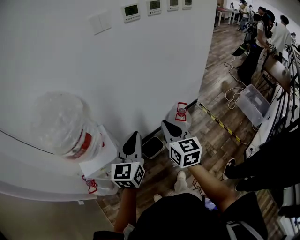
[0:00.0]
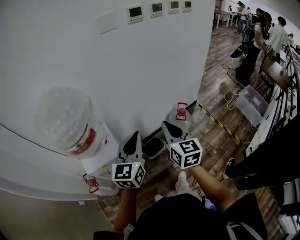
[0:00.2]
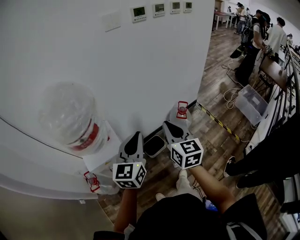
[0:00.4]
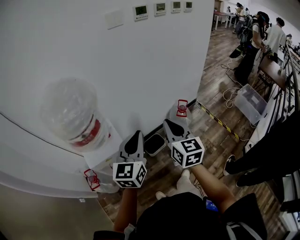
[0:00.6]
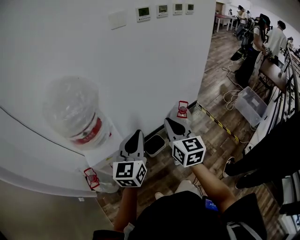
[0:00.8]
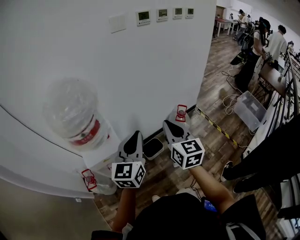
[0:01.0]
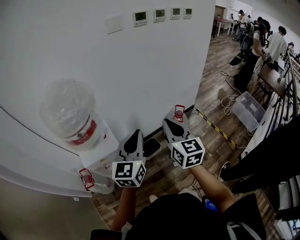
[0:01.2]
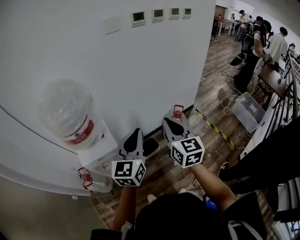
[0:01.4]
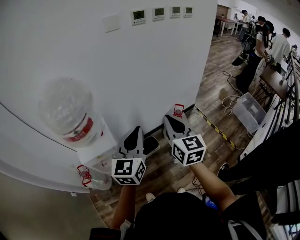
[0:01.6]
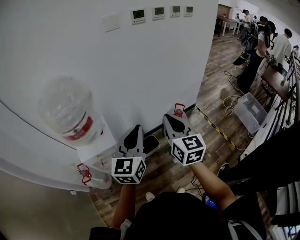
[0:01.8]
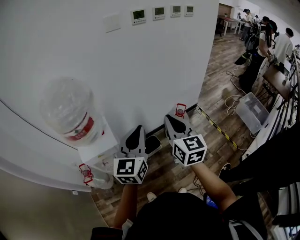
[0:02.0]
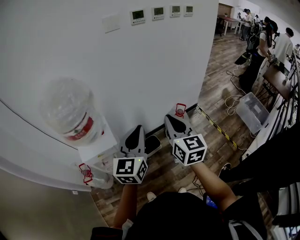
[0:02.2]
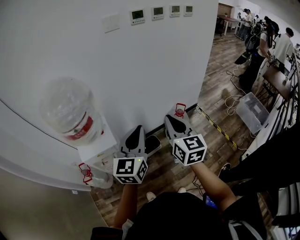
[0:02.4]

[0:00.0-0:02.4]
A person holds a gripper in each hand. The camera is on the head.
0:00.0 to 0:01.2: The grippers both shift backward by some 10 cm.
0:01.2 to 0:02.4: There are only small adjustments of the grippers.

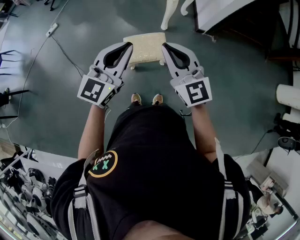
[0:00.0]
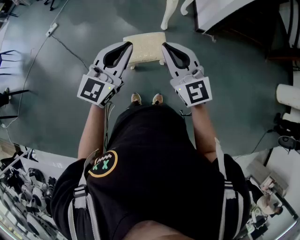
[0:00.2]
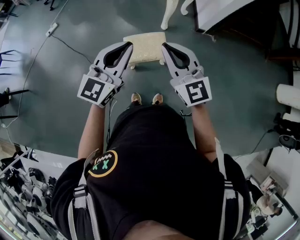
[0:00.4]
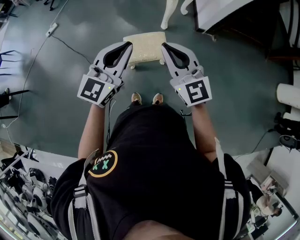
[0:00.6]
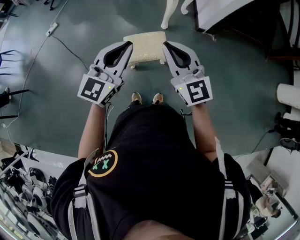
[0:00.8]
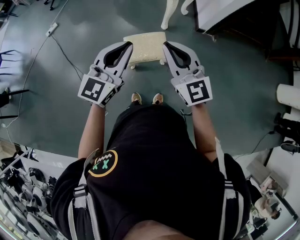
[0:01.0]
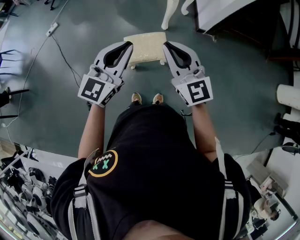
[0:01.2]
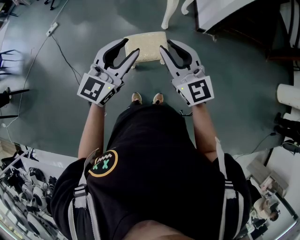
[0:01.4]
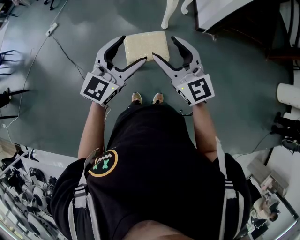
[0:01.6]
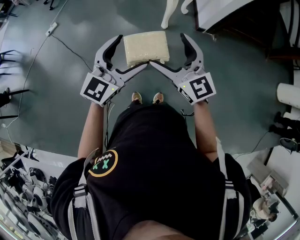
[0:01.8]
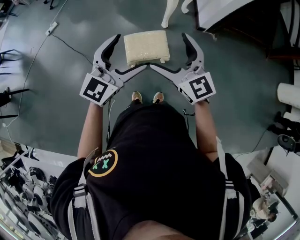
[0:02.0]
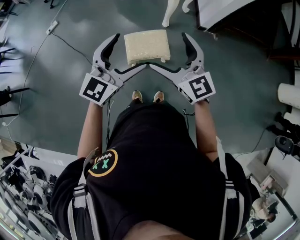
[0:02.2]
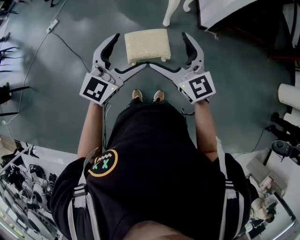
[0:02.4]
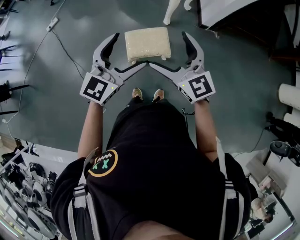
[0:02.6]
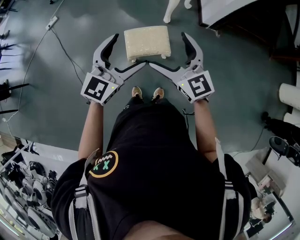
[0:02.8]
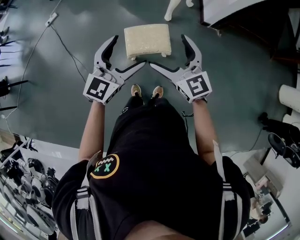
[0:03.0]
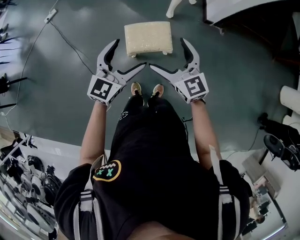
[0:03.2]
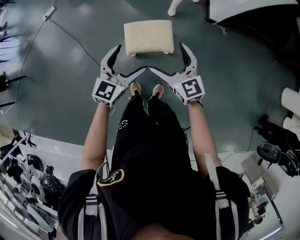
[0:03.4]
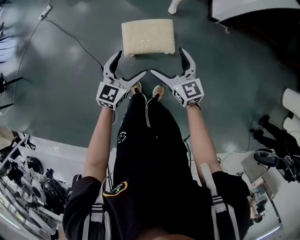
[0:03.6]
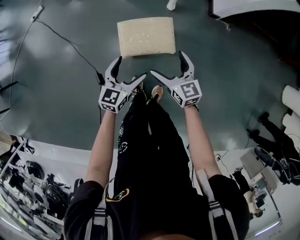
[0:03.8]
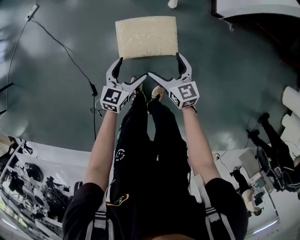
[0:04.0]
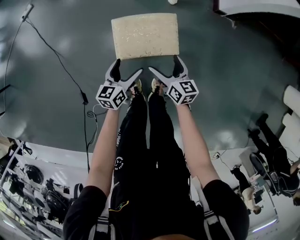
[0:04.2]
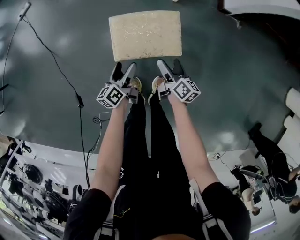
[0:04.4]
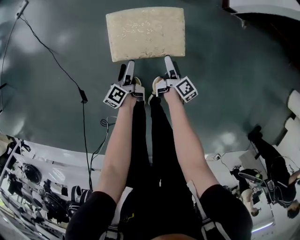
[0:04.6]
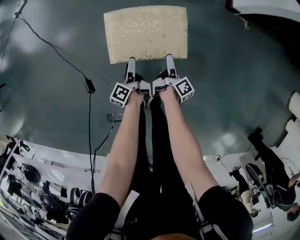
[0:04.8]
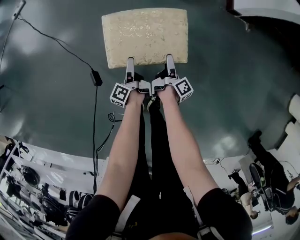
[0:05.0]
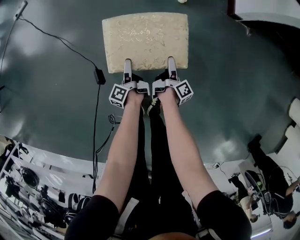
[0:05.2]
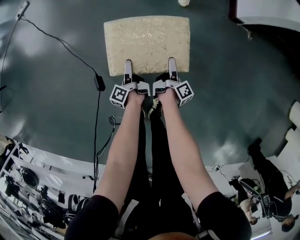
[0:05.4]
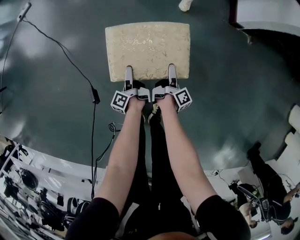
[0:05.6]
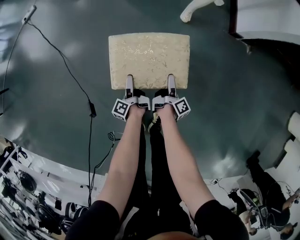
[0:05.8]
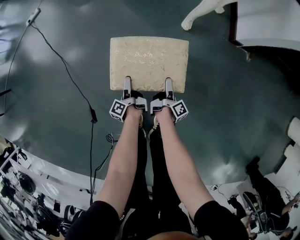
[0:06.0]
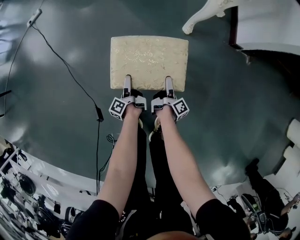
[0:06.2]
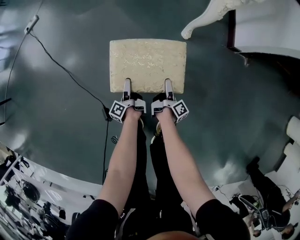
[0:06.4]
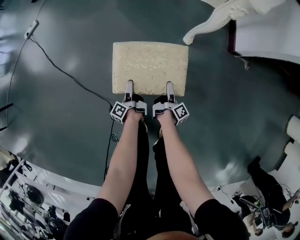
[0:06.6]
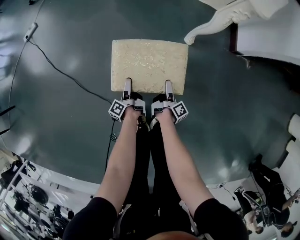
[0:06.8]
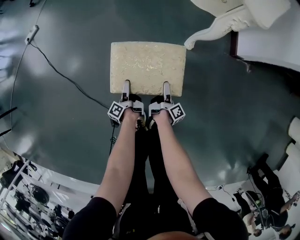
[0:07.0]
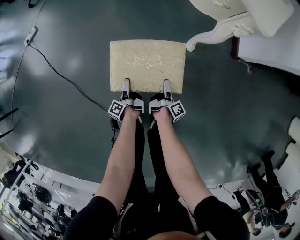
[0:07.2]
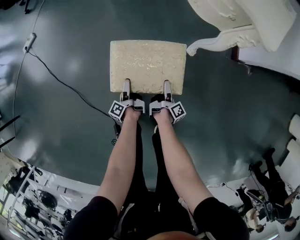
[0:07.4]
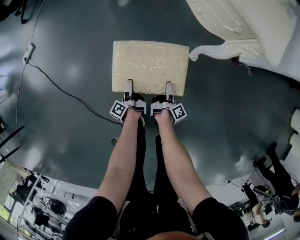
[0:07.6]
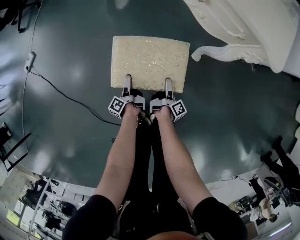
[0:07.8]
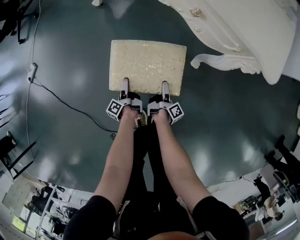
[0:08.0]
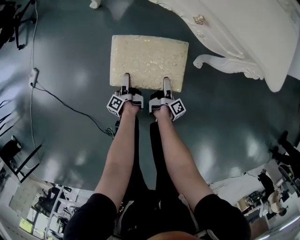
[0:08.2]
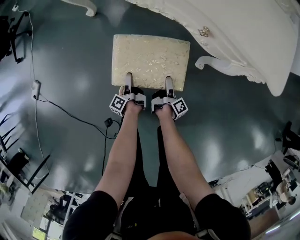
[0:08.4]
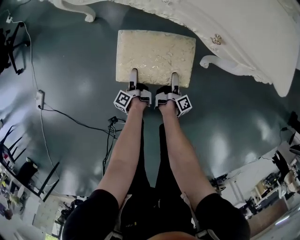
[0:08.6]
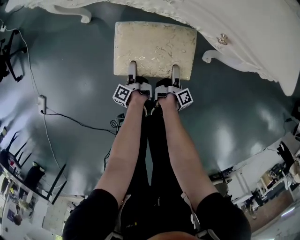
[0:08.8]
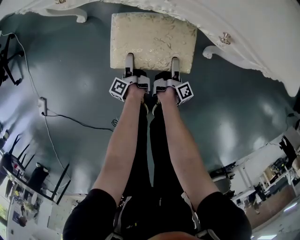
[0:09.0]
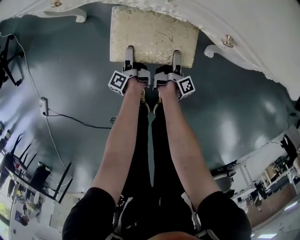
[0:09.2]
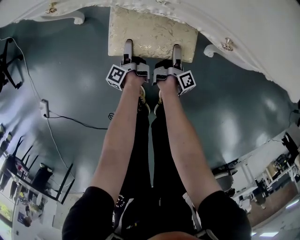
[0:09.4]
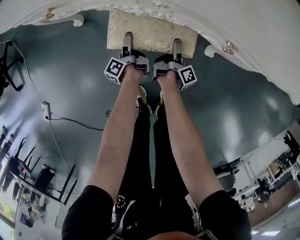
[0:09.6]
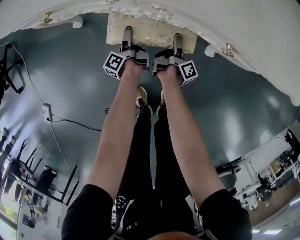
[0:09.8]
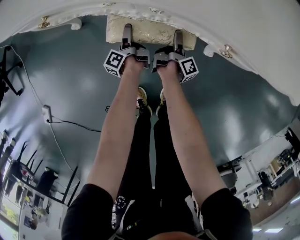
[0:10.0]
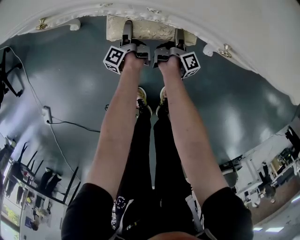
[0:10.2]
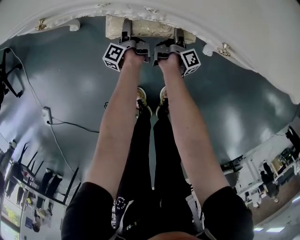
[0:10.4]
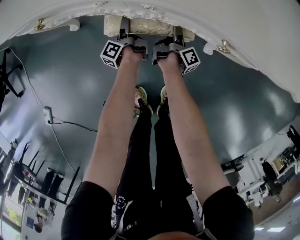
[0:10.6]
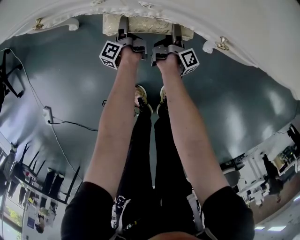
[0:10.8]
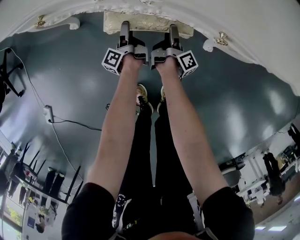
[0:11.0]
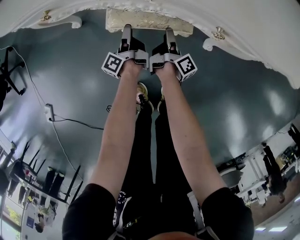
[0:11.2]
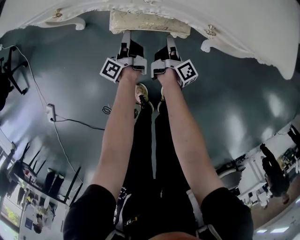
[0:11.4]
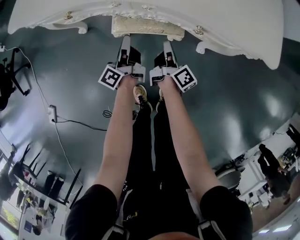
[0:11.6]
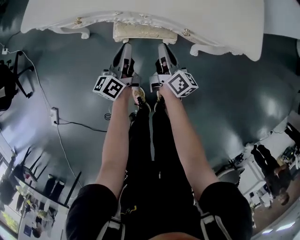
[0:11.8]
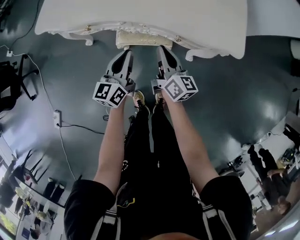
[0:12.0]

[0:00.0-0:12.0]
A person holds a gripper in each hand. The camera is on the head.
0:00.0 to 0:01.6: The right gripper opens up; the left gripper opens its fingers.
0:01.6 to 0:03.0: Both grippers move downward, about 5 cm. The right gripper opens.
0:03.0 to 0:04.4: Both grippers travel together downward, roughly 50 cm. The left gripper rotates around the line of its fingers by roughly 70 degrees, counterclockwise from behind. Meanwhile the right gripper rotates around the line of its fingers by approximately 60 degrees, clockwise from behind.
0:04.4 to 0:06.0: The right gripper goes approximately 20 cm downward, and twists approximately 40 degrees clockwise, seen from behind, while the left gripper moves downward and forward, roughly 20 cm, and changes its angle by roughly 50 degrees.
0:06.0 to 0:07.6: The left gripper swings forward and backward, approximately 15 cm each way, with 3 reversals. The right gripper goes forward and backward, roughly 15 cm each way, reversing 3 times.
0:07.6 to 0:09.0: Both grippers move forward, about 25 cm.
0:09.0 to 0:10.4: Both grippers travel together forward, approximately 15 cm.
0:10.4 to 0:12.0: Both grippers move upward, roughly 40 cm. The left gripper rolls clockwise, seen from behind, by approximately 60 degrees, and closes up. Meanwhile the right gripper rolls counterclockwise, seen from behind, by roughly 60 degrees, and closes.

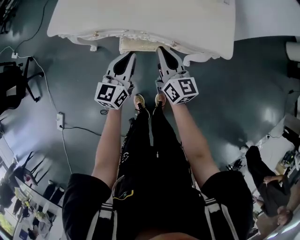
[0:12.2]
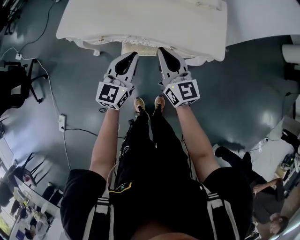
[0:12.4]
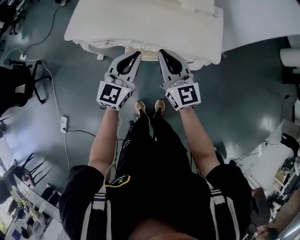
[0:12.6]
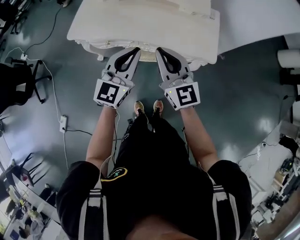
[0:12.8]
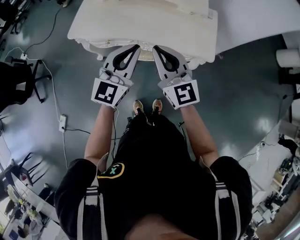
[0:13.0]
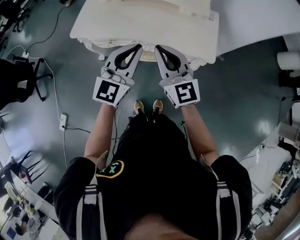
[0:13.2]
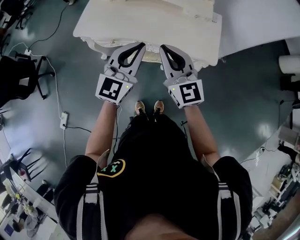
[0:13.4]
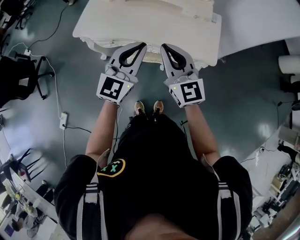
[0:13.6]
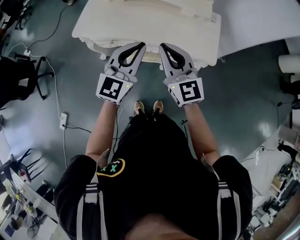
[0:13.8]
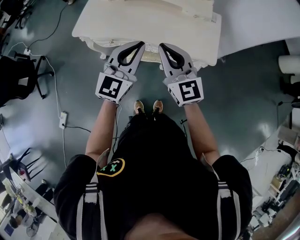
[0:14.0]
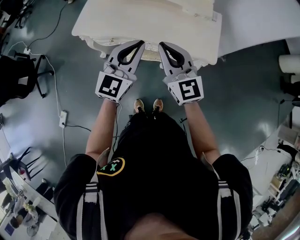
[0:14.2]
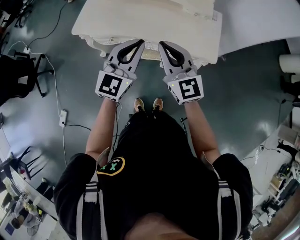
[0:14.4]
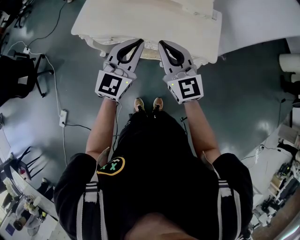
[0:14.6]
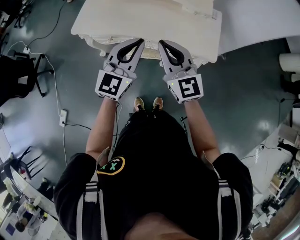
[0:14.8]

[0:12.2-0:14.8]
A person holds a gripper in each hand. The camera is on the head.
0:12.2 to 0:13.4: Both grippers move upward, approximately 25 cm. The left gripper turns by about 30 degrees, while the right gripper turns by some 30 degrees.
0:13.4 to 0:14.8: The two grippers keep their place.

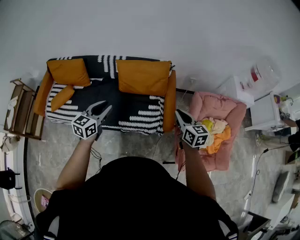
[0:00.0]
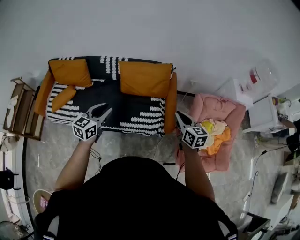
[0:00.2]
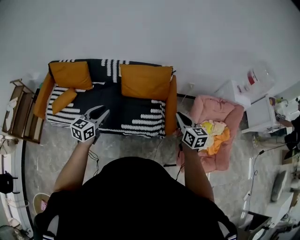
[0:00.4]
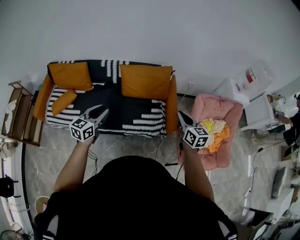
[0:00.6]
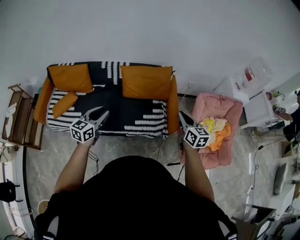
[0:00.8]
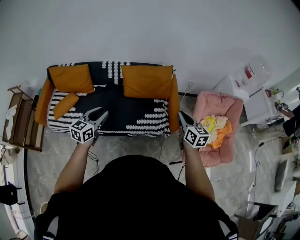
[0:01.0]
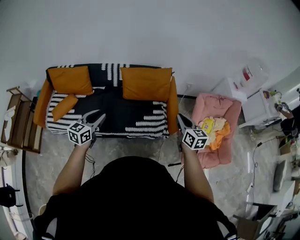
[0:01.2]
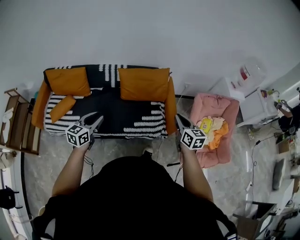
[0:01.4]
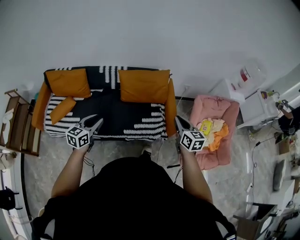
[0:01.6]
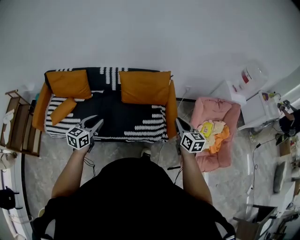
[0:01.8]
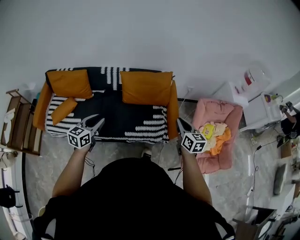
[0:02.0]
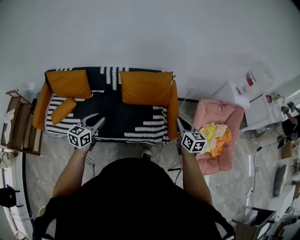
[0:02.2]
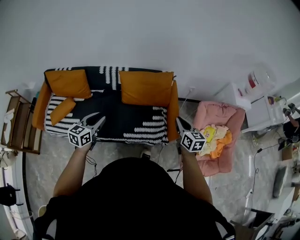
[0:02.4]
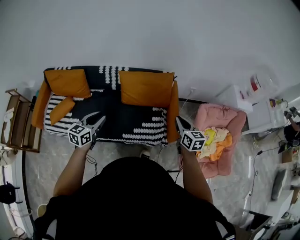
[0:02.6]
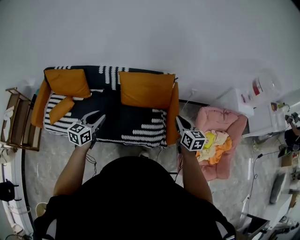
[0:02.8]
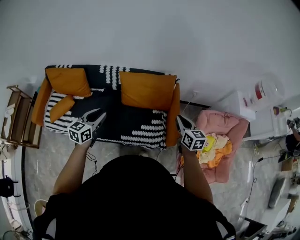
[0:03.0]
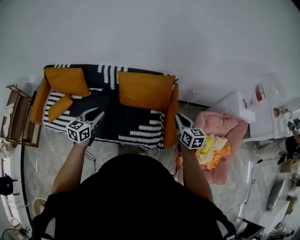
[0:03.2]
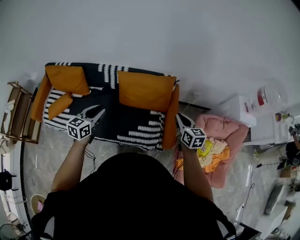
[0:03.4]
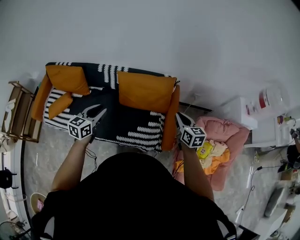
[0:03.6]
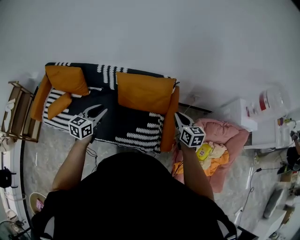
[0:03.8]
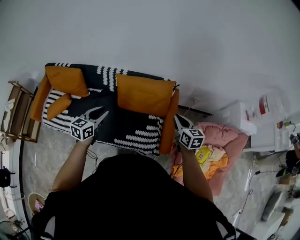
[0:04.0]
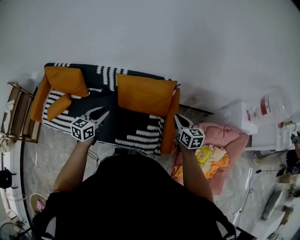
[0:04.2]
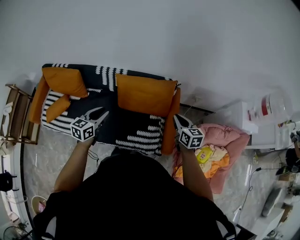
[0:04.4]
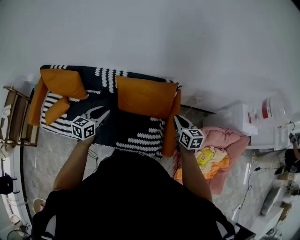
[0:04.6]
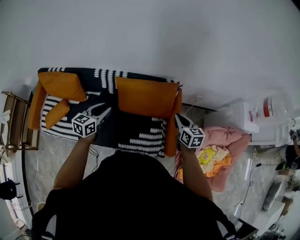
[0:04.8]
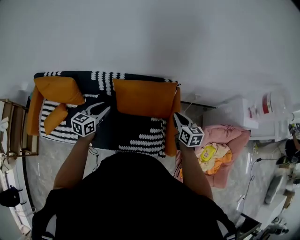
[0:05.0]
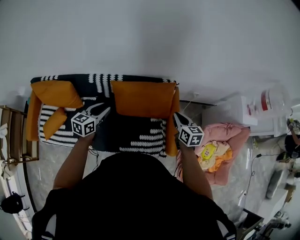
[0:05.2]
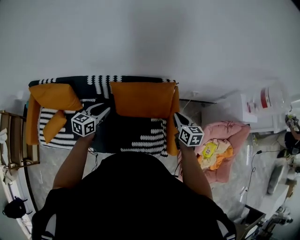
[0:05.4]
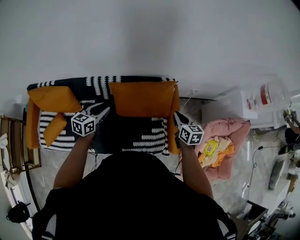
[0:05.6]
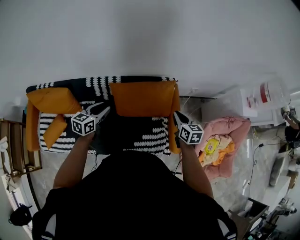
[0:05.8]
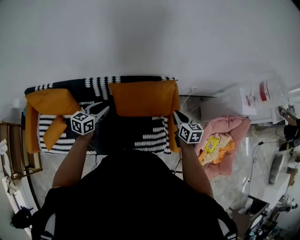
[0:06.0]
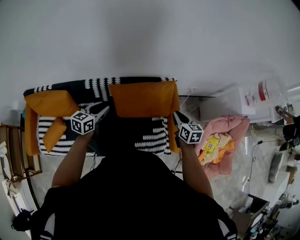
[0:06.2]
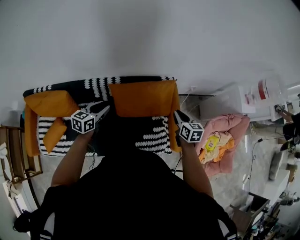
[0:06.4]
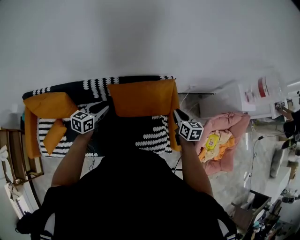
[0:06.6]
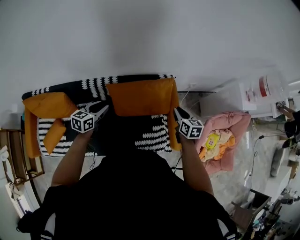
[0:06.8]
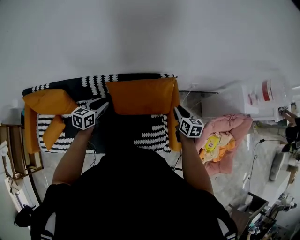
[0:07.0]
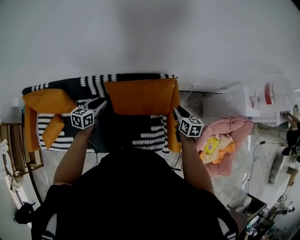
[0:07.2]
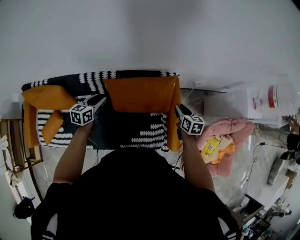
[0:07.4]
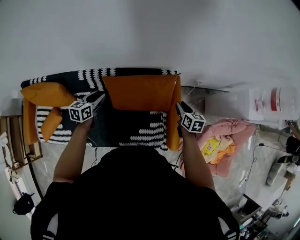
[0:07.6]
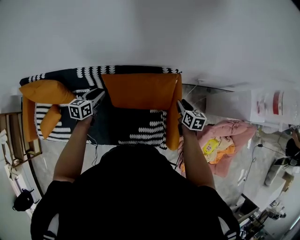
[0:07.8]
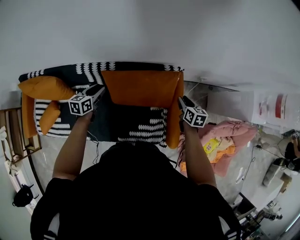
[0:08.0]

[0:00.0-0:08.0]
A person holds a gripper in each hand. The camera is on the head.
0:00.0 to 0:01.6: Both grippers travel together to the left and backward, about 15 cm.
0:01.6 to 0:03.2: The grippers both shift forward by approximately 20 cm.
0:03.2 to 0:04.8: Both grippers travel together forward, some 15 cm.
0:04.8 to 0:06.4: The right gripper changes place by approximately 5 cm. The left gripper travels forward and to the left by roughly 10 cm.
0:06.4 to 0:08.0: The right gripper moves forward, downward and to the right, roughly 20 cm, while the left gripper shifts about 15 cm downward and forward.
